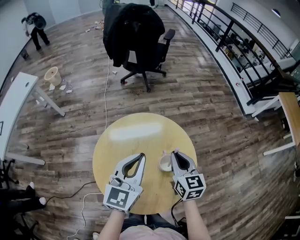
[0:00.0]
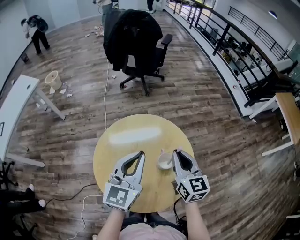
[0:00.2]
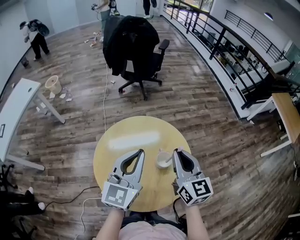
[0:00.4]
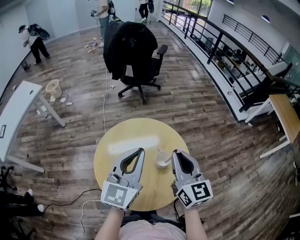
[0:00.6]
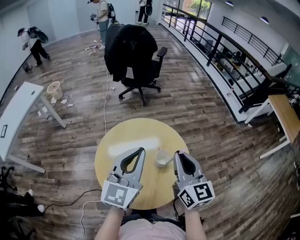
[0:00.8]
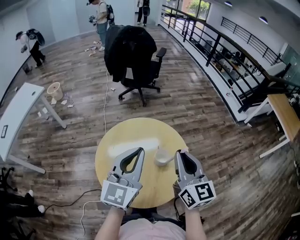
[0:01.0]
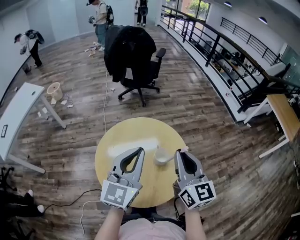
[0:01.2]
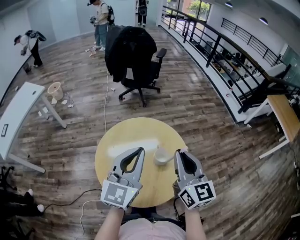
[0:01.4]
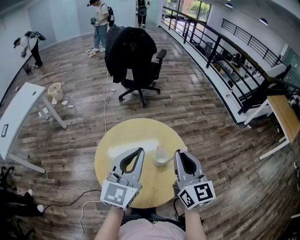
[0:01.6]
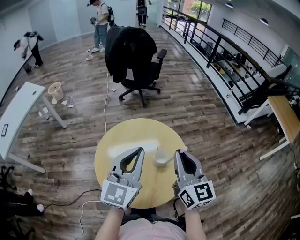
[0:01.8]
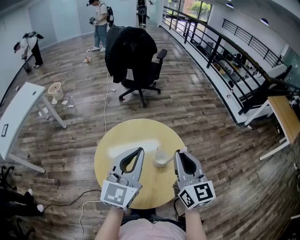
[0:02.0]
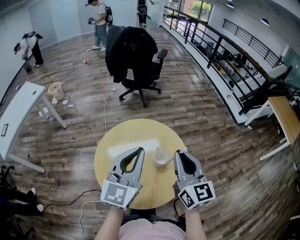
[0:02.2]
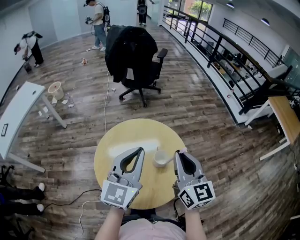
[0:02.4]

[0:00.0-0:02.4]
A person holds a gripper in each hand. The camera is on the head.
0:00.0 to 0:01.2: The left gripper moves upward and backward, roughly 15 cm; the right gripper moves upward and backward, about 20 cm, and swivels about 20 degrees.
0:01.2 to 0:02.4: The two grippers keep their place.

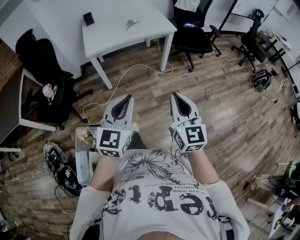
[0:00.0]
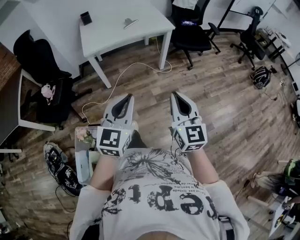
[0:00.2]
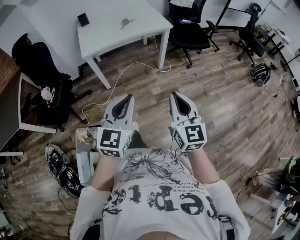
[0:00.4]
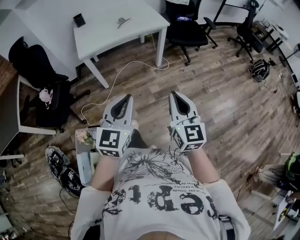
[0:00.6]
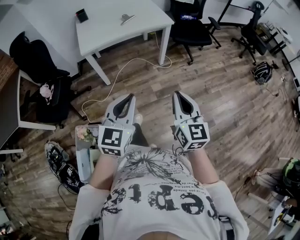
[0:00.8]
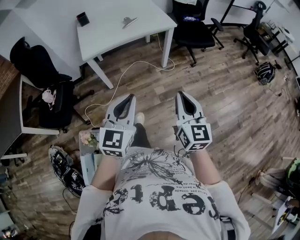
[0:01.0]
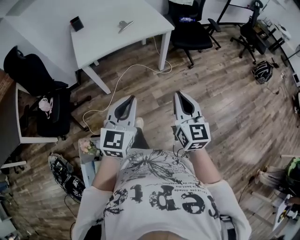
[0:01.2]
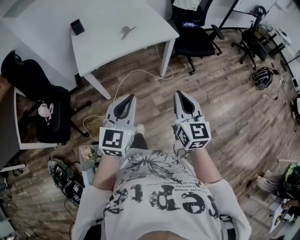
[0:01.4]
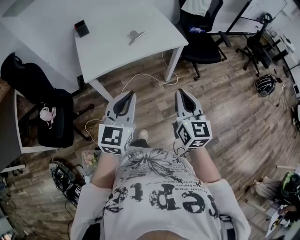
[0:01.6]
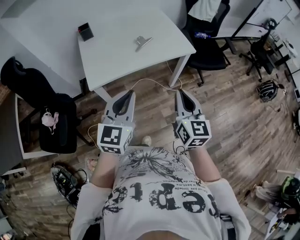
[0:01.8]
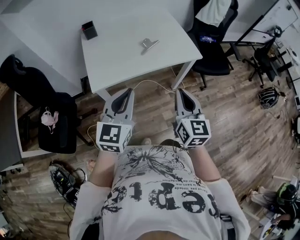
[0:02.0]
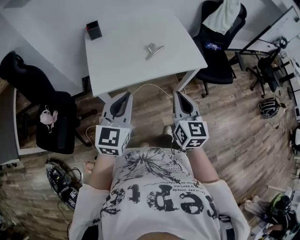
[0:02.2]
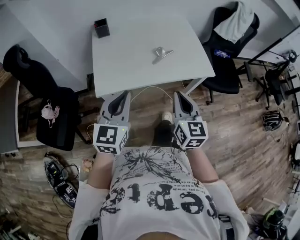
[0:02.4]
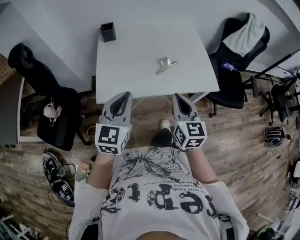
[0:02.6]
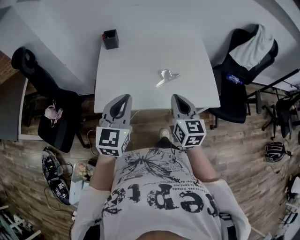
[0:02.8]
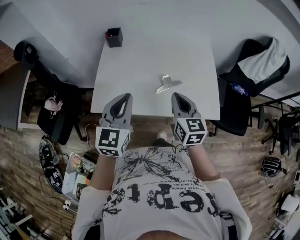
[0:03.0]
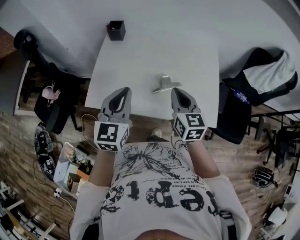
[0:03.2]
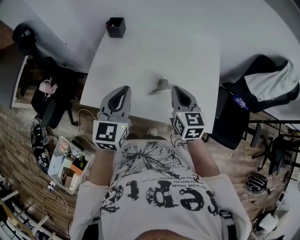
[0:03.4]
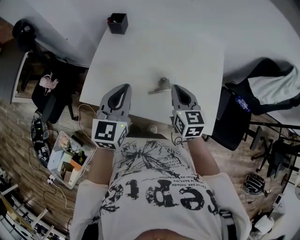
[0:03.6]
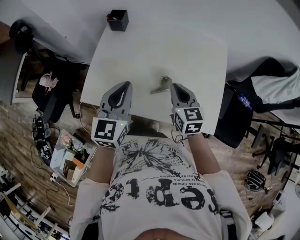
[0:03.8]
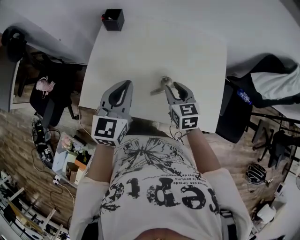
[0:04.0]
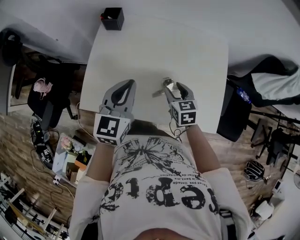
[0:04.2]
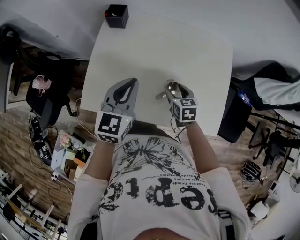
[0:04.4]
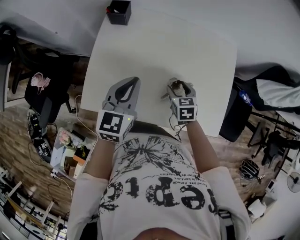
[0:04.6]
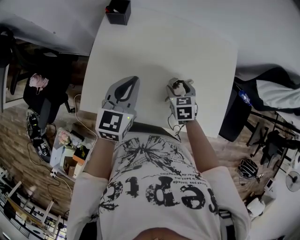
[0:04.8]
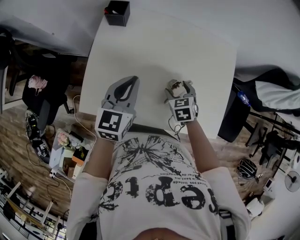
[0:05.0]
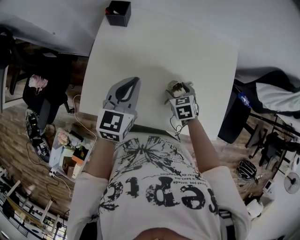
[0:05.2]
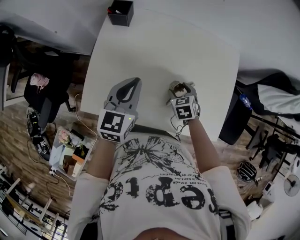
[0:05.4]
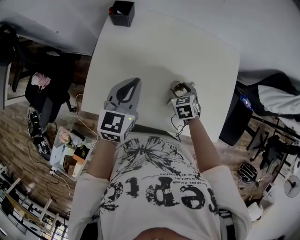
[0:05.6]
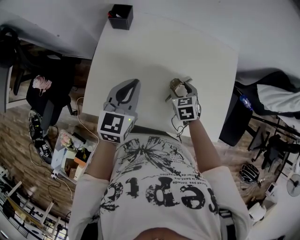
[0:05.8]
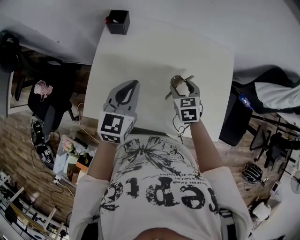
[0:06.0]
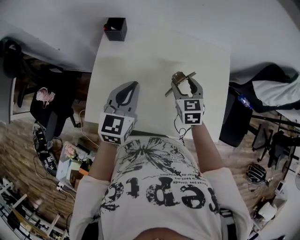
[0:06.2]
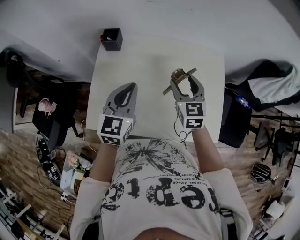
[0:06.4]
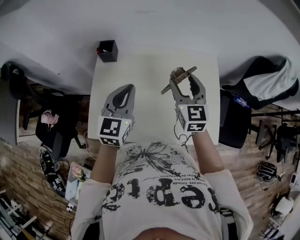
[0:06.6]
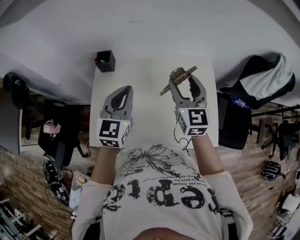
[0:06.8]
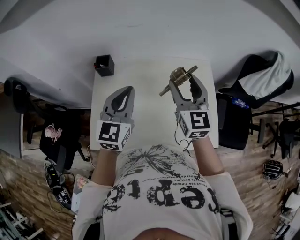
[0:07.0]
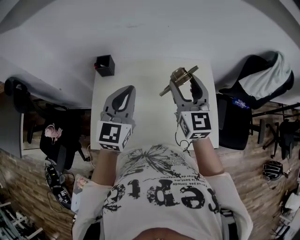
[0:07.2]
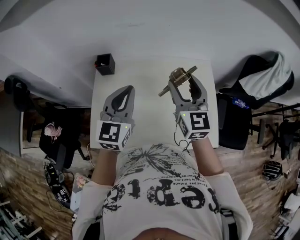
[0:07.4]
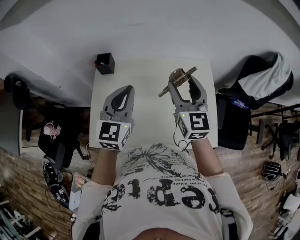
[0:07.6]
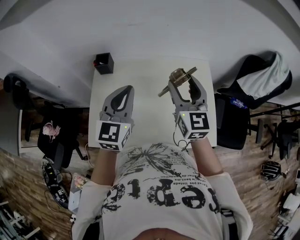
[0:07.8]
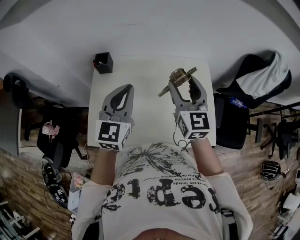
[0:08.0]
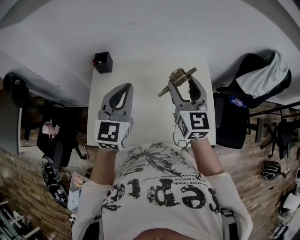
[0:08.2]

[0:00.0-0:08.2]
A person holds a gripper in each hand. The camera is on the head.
0:00.0 to 0:01.6: The grippers both shift forward by about 30 cm.
0:01.6 to 0:03.2: Both grippers are carried some 50 cm. The right gripper changes its angle by some 40 degrees; the left gripper changes its angle by about 40 degrees.
0:03.2 to 0:05.0: The left gripper moves forward and downward, roughly 20 cm, while the right gripper goes roughly 25 cm downward and forward, angles its fingers downward, by about 40 degrees, and opens.
0:05.0 to 0:06.6: The left gripper is displaced upward by about 10 cm. The right gripper goes some 25 cm upward, and tips its fingers upward by some 40 degrees.
0:06.6 to 0:08.2: Both grippers move upward, about 5 cm.

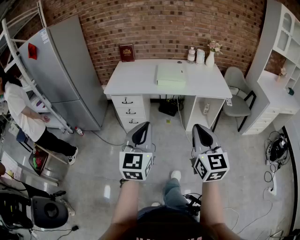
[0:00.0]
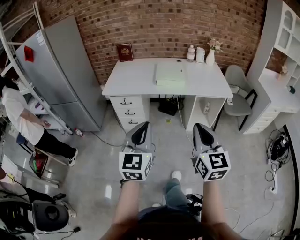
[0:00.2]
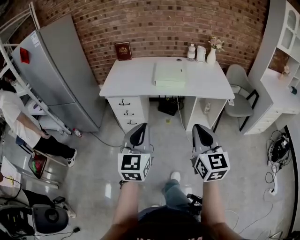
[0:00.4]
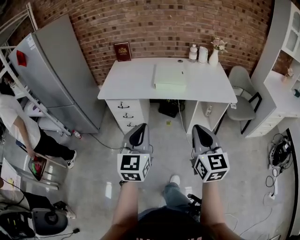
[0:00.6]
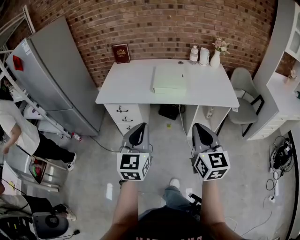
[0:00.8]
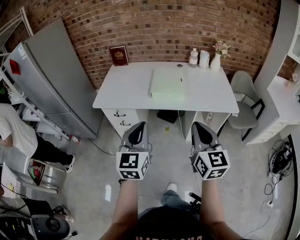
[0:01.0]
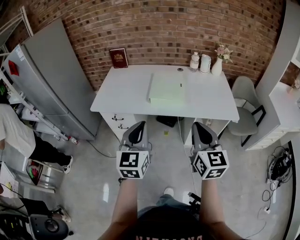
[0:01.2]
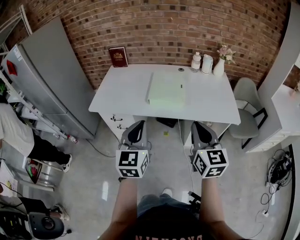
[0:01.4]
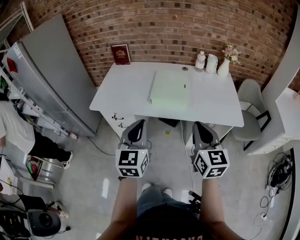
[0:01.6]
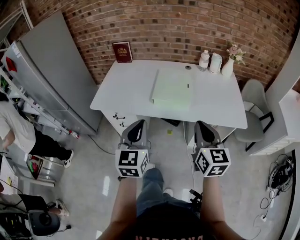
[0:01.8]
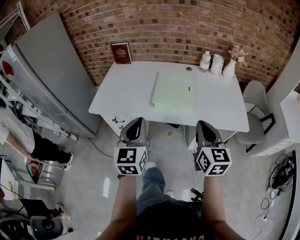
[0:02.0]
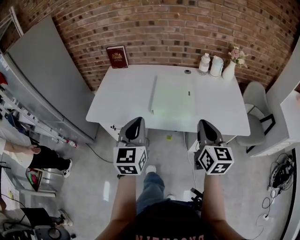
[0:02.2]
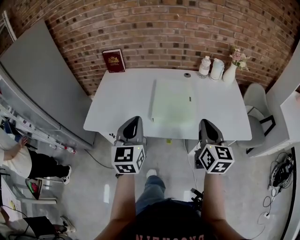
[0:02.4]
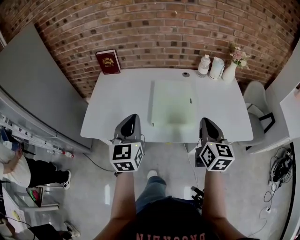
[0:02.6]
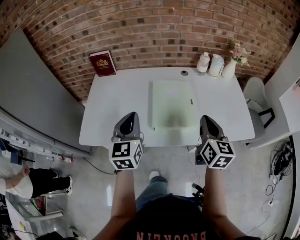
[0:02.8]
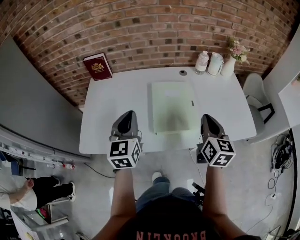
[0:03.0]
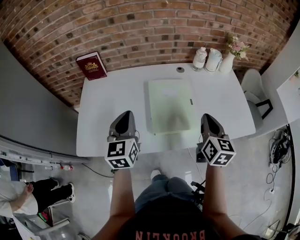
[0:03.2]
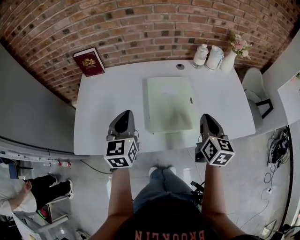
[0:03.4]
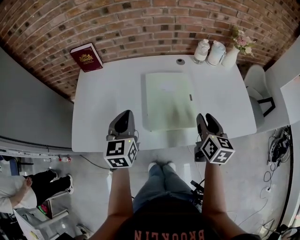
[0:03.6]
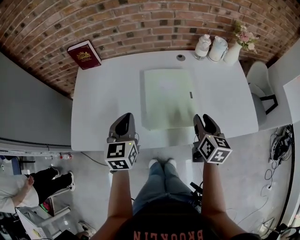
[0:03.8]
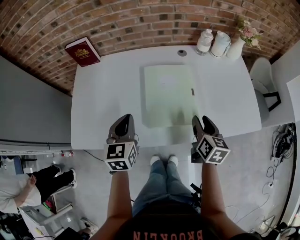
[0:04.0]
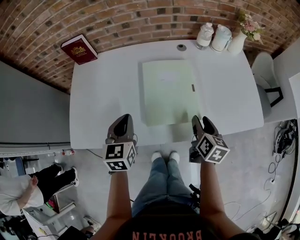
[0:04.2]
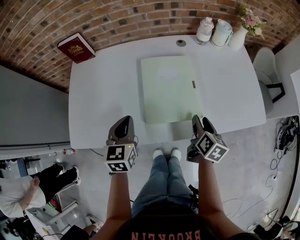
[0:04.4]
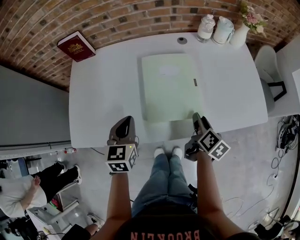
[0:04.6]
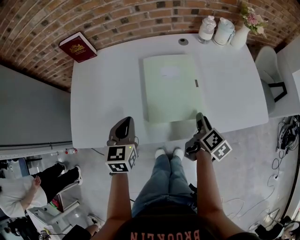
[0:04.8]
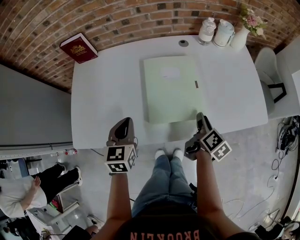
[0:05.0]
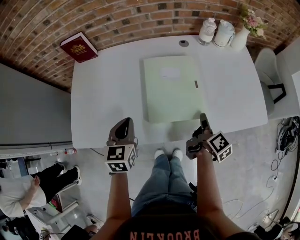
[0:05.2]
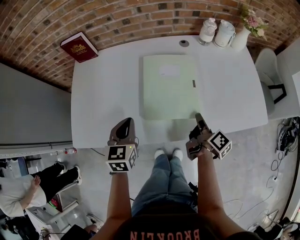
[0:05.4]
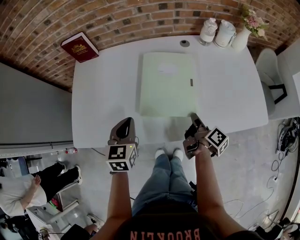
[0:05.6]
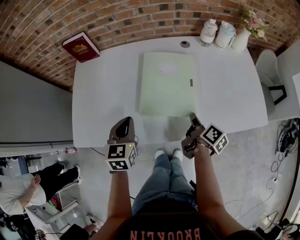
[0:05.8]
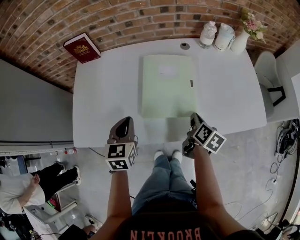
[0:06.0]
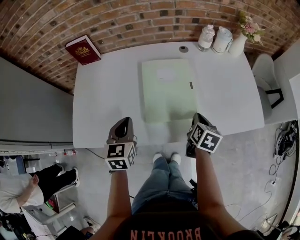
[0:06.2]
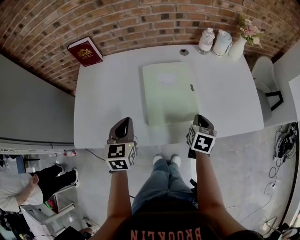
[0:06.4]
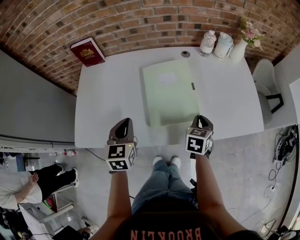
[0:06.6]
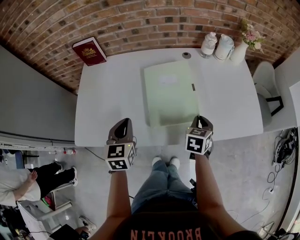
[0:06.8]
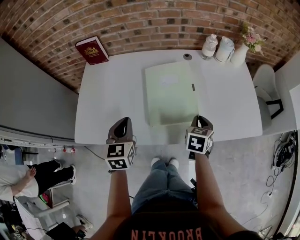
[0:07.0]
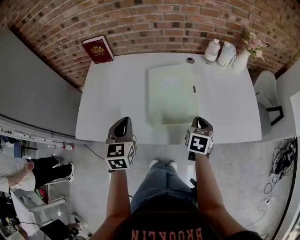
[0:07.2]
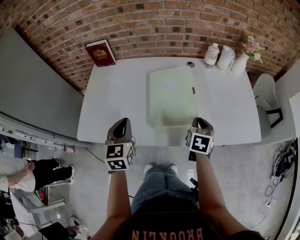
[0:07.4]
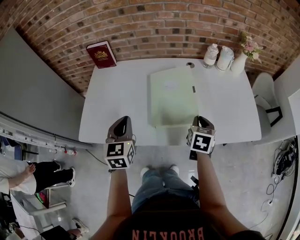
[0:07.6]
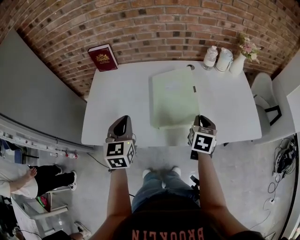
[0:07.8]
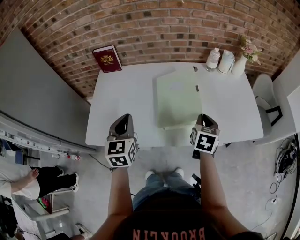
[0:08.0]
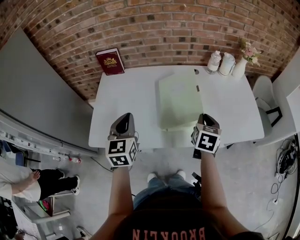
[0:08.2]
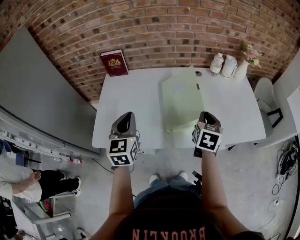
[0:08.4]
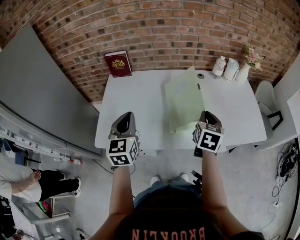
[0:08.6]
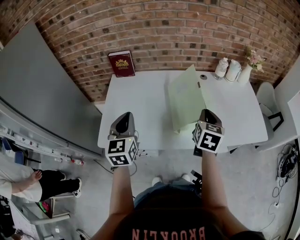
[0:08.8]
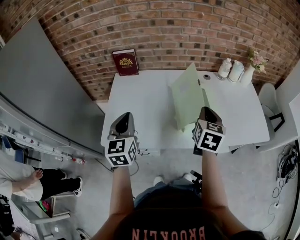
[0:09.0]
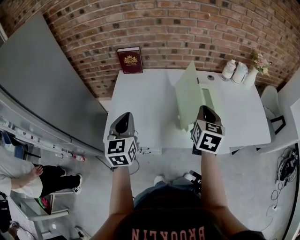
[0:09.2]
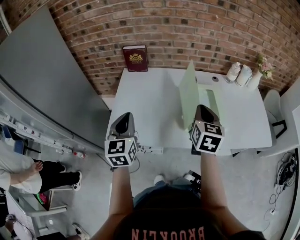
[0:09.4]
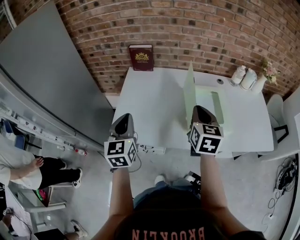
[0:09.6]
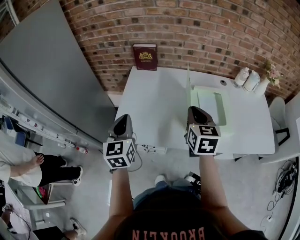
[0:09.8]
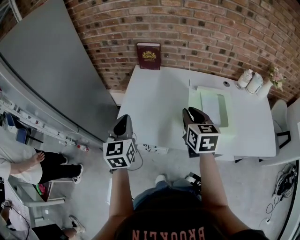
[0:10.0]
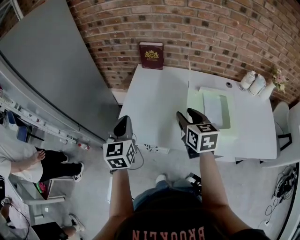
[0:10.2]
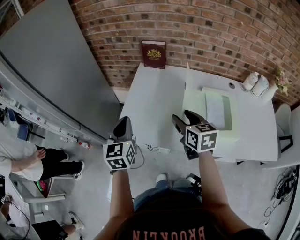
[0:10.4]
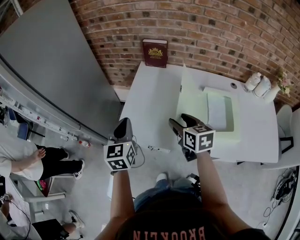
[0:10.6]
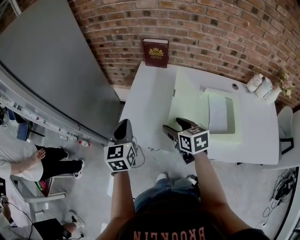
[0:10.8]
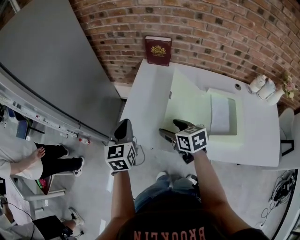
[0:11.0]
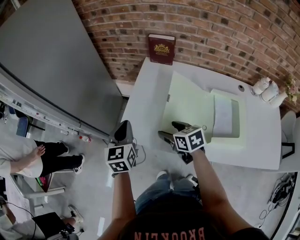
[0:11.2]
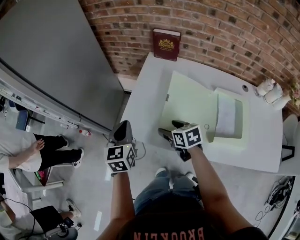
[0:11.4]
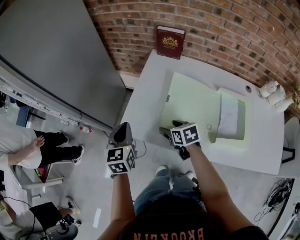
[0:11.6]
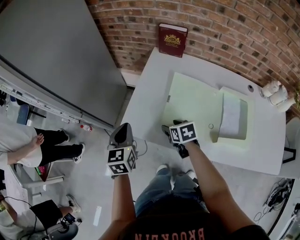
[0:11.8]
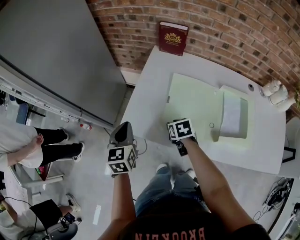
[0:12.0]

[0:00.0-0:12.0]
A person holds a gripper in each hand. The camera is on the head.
0:00.0 to 0:01.6: The grippers both shift forward by some 35 cm.
0:01.6 to 0:03.0: Both grippers move forward, some 30 cm. The right gripper swivels about 20 degrees.
0:03.0 to 0:04.4: Both grippers move downward, roughly 15 cm. The right gripper swivels approximately 30 degrees, and opens its fingers.
0:04.4 to 0:06.0: The right gripper closes its fingers.
0:06.0 to 0:07.6: The two grippers go some 5 cm upward. The right gripper turns by approximately 40 degrees.
0:07.6 to 0:09.0: The grippers both shift to the left and upward by roughly 15 cm.
0:09.0 to 0:10.4: The right gripper ends up approximately 25 cm from where it was, turns by approximately 40 degrees, and opens up. Meanwhile the left gripper changes place by about 15 cm.
0:10.4 to 0:12.0: The left gripper shifts approximately 10 cm downward and to the left, while the right gripper is displaced downward by about 20 cm, and points its fingers about 30 degrees further downward.

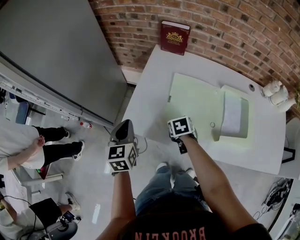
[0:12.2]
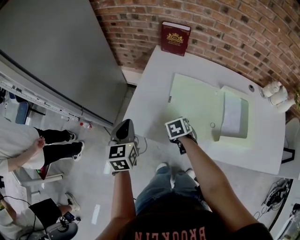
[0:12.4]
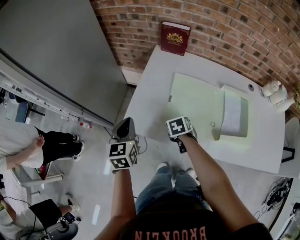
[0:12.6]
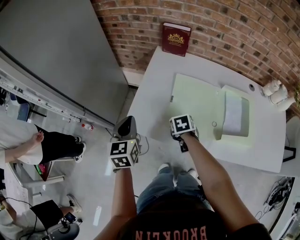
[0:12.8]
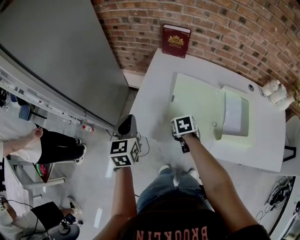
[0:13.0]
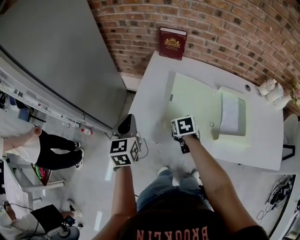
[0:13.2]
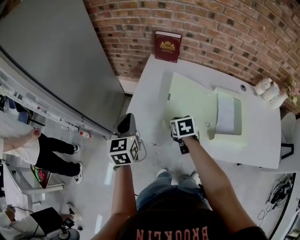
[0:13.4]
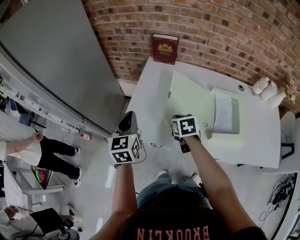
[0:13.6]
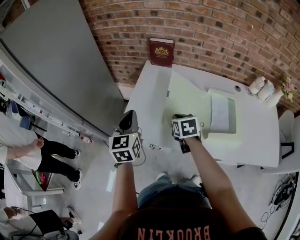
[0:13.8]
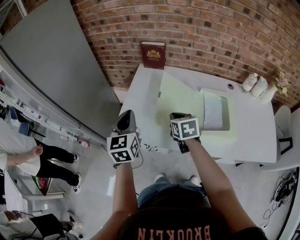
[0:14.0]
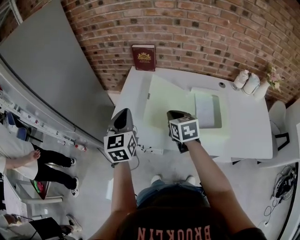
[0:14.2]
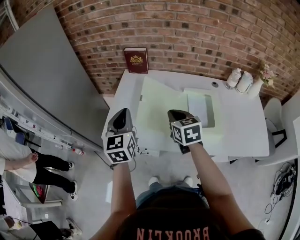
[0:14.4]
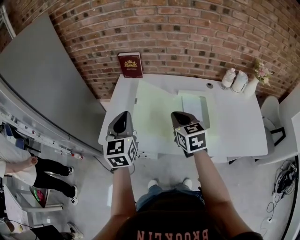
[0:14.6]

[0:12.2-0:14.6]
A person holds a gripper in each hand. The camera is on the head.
0:12.2 to 0:13.4: The right gripper heads upward, covering some 5 cm; the left gripper shifts by about 5 cm.
0:13.4 to 0:14.6: The right gripper shifts some 25 cm upward, to the right and backward, and angles its fingers upward, by roughly 30 degrees. Meanwhile the left gripper goes about 20 cm to the right and upward.
